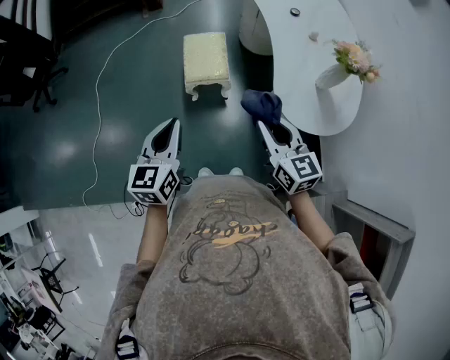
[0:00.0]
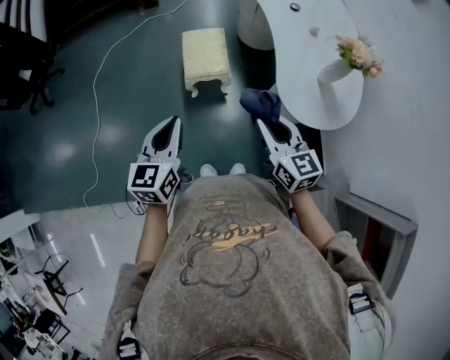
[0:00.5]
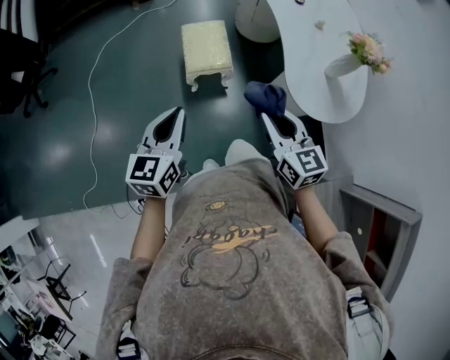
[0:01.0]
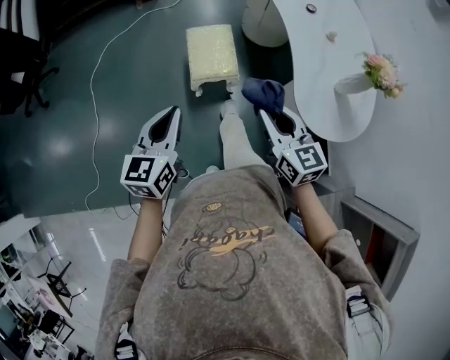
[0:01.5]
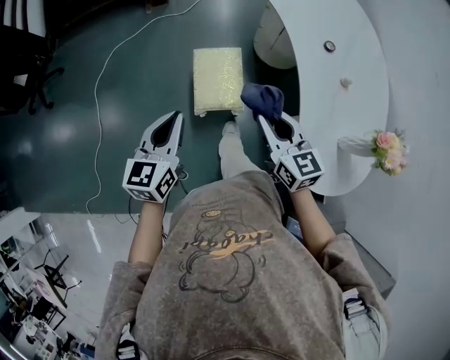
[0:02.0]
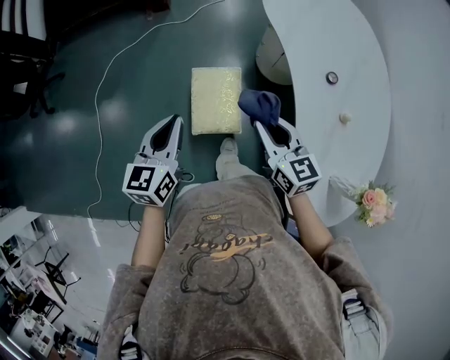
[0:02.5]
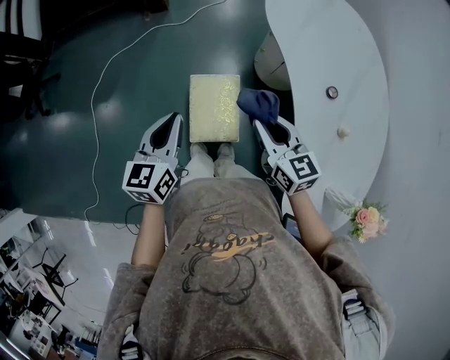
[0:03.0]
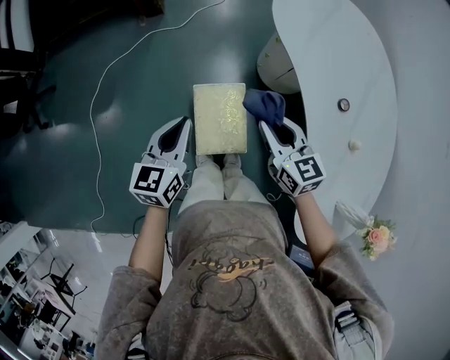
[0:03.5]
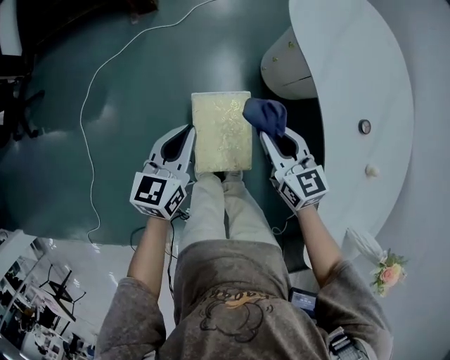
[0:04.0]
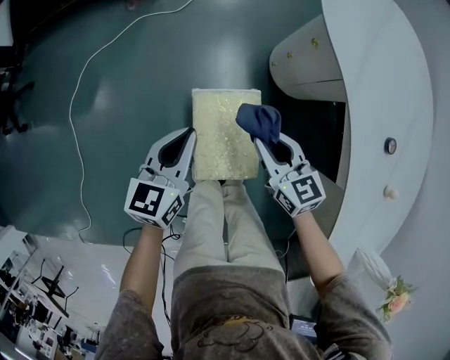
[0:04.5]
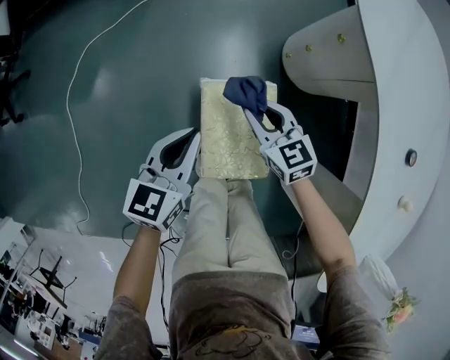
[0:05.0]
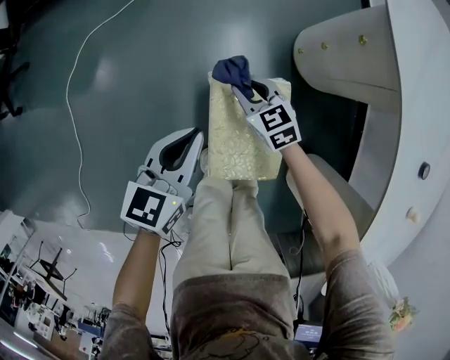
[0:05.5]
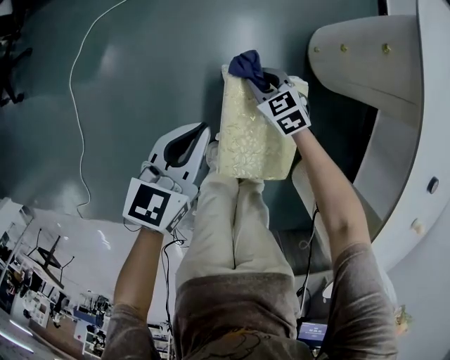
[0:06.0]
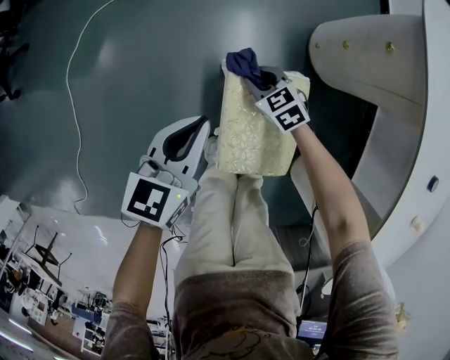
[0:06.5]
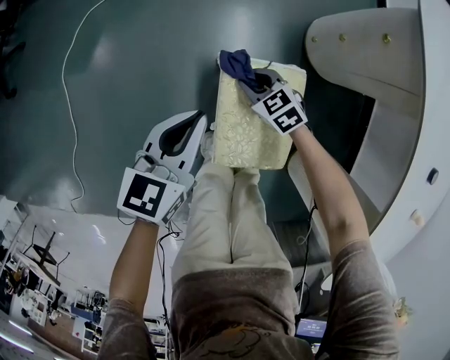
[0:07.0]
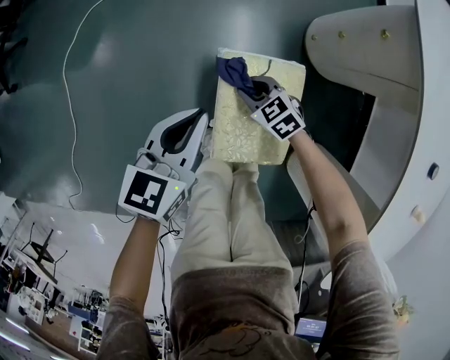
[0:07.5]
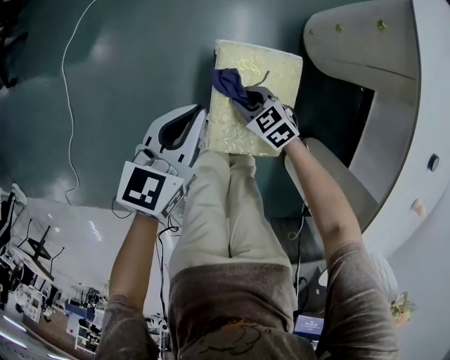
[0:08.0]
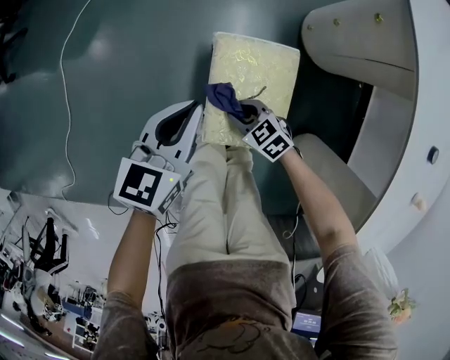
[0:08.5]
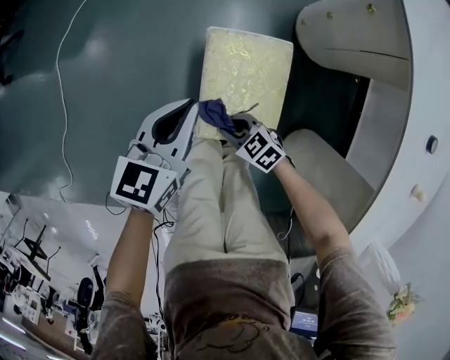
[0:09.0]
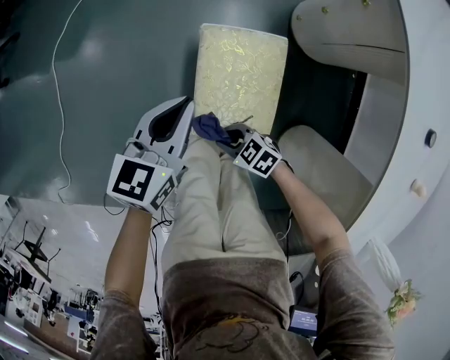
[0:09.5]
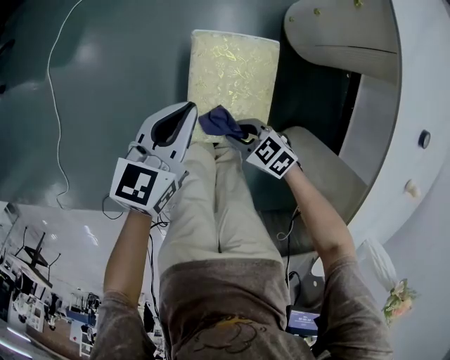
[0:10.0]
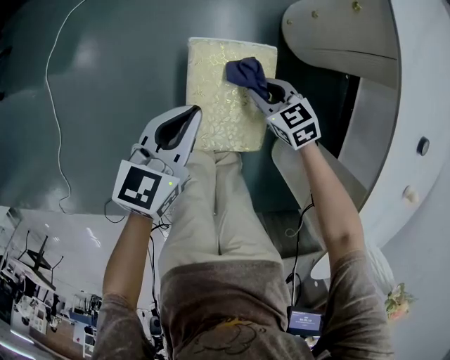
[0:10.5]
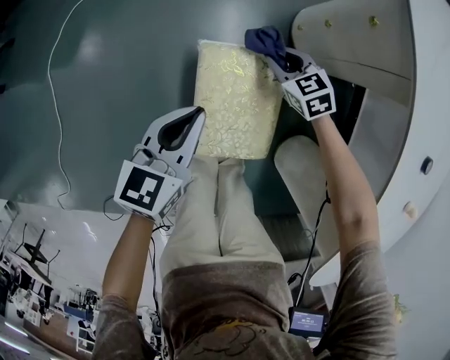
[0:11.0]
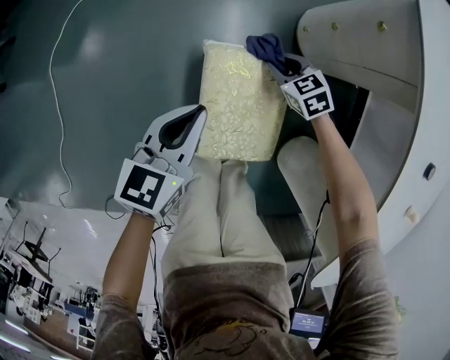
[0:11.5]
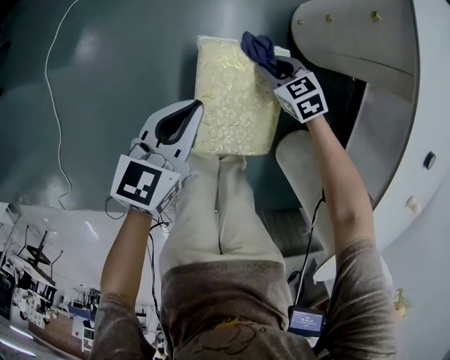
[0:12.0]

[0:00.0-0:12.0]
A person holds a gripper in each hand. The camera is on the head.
0:00.0 to 0:02.0: The two grippers go some 25 cm forward.
0:02.0 to 0:04.0: Both grippers travel together forward and downward, some 35 cm.
0:04.0 to 0:06.0: The left gripper moves downward, some 20 cm, while the right gripper is displaced downward by roughly 35 cm, and turns by roughly 40 degrees.
0:06.0 to 0:08.0: The right gripper travels backward by some 15 cm; the left gripper shifts about 5 cm backward.
0:08.0 to 0:10.0: The right gripper moves roughly 15 cm.
0:10.0 to 0:12.0: The right gripper goes about 25 cm forward and to the right, and rotates about 20 degrees. Meanwhile the left gripper ends up approximately 5 cm from where it was.

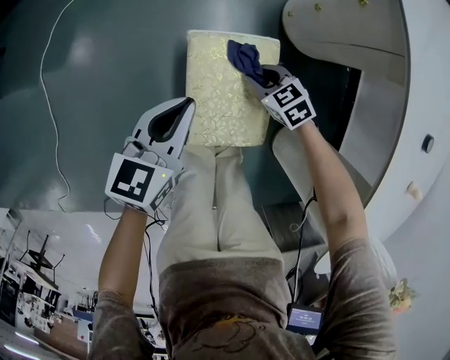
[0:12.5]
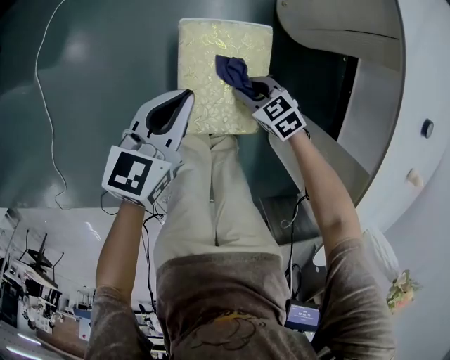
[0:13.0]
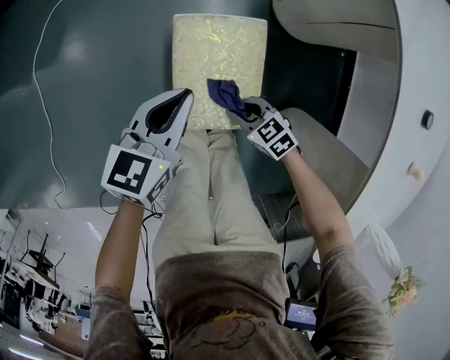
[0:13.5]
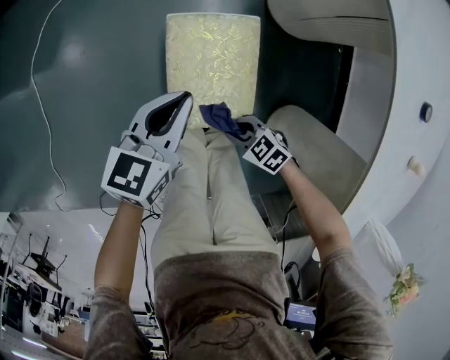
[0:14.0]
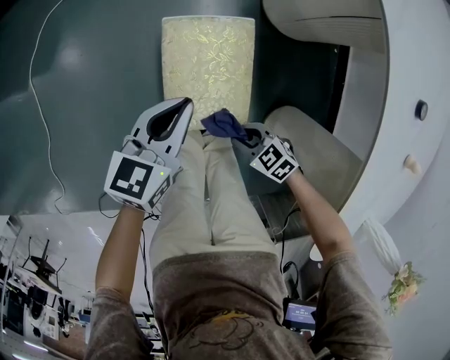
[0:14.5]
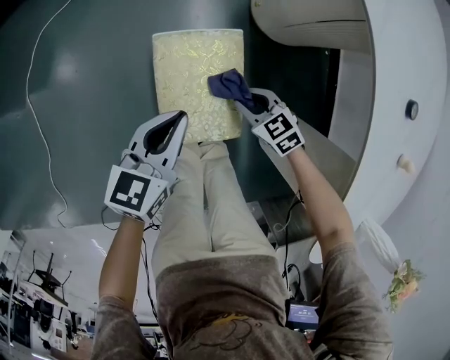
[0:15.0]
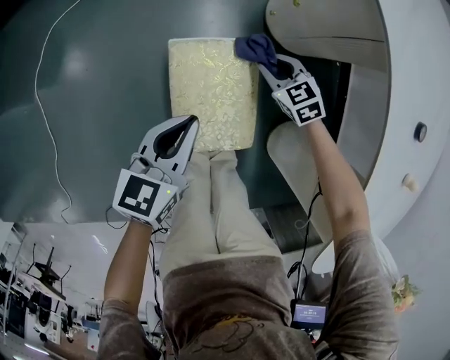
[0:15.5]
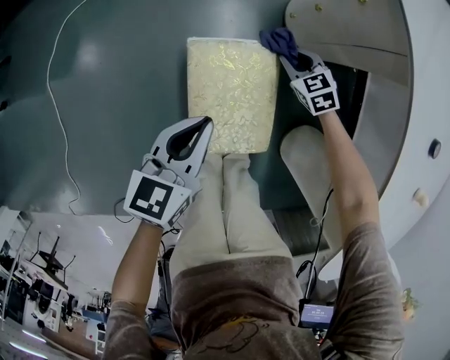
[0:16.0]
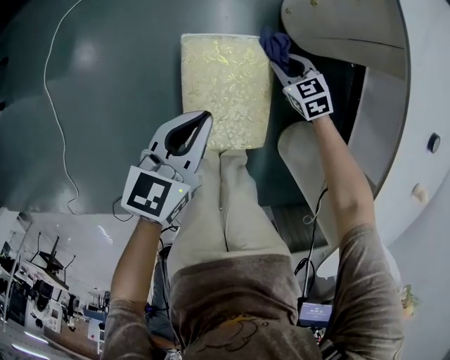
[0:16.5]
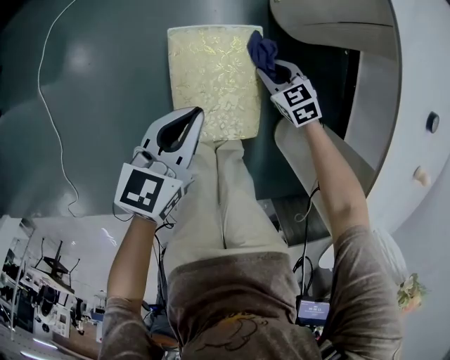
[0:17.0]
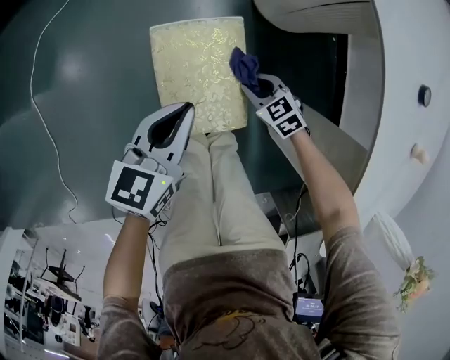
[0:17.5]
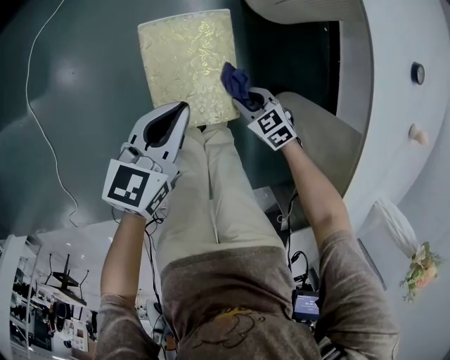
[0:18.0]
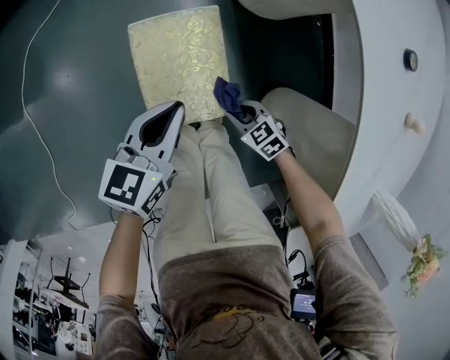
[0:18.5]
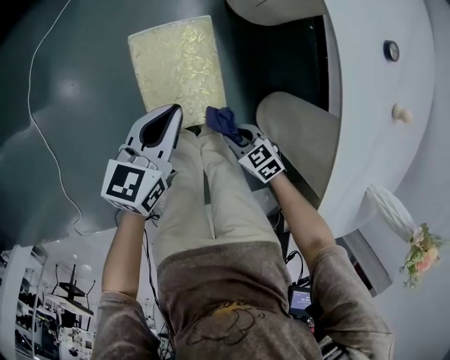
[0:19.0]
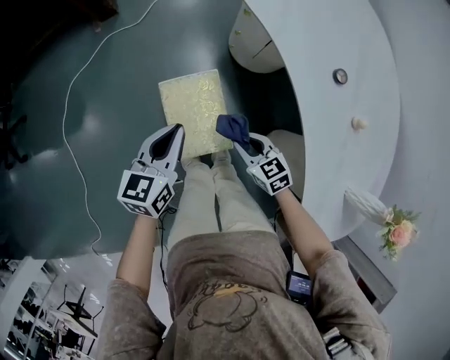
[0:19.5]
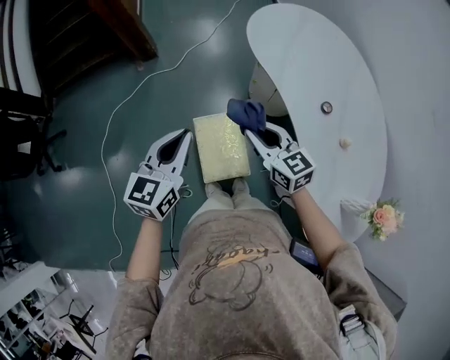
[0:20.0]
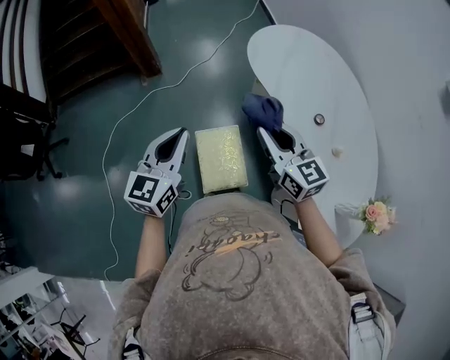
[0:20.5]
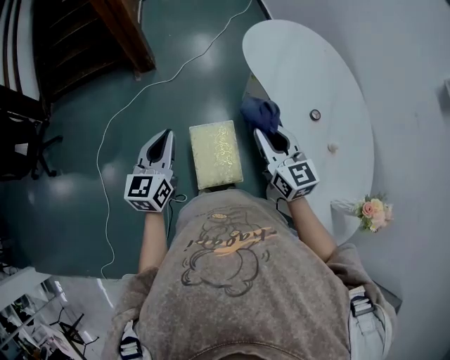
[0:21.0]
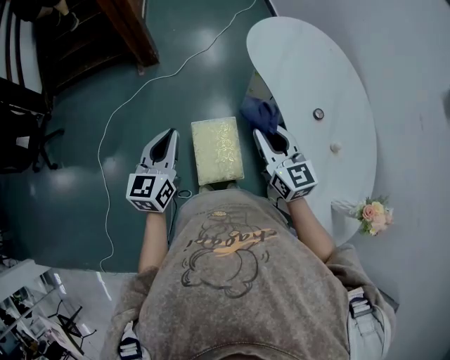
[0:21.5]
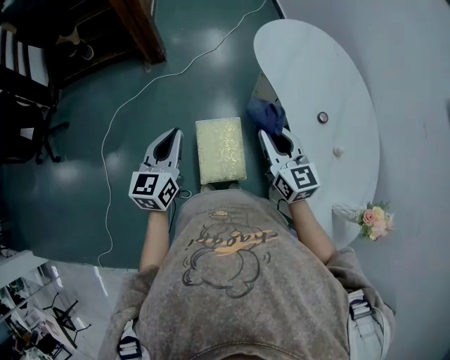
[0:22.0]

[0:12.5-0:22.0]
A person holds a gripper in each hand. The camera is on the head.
0:12.5 to 0:14.5: The left gripper moves some 10 cm; the right gripper shifts by some 25 cm.
0:14.5 to 0:16.5: The right gripper travels forward by some 30 cm, and rotates roughly 30 degrees.
0:16.5 to 0:18.0: The left gripper heads backward, covering approximately 5 cm; the right gripper moves backward, approximately 20 cm.
0:18.0 to 0:20.0: The two grippers go approximately 40 cm upward. The right gripper angles its fingers upward, by some 40 degrees. Meanwhile the left gripper rotates approximately 20 degrees.
0:20.0 to 0:22.0: The right gripper travels upward by about 5 cm, while the left gripper changes place by roughly 5 cm.

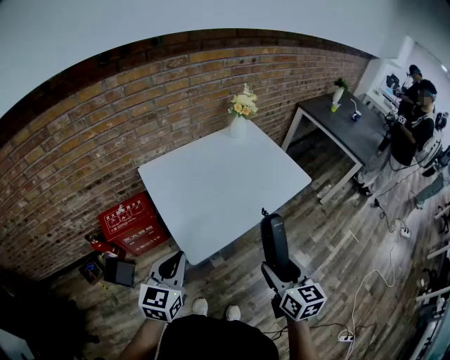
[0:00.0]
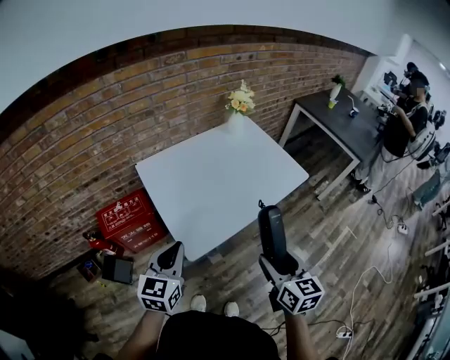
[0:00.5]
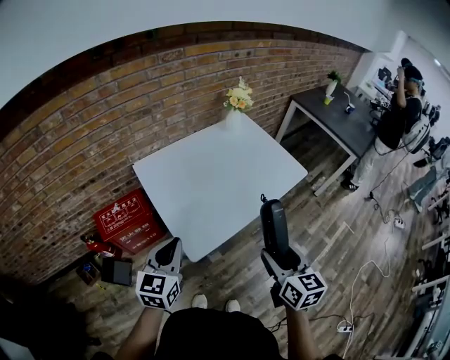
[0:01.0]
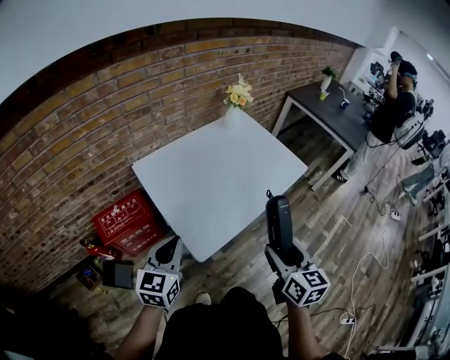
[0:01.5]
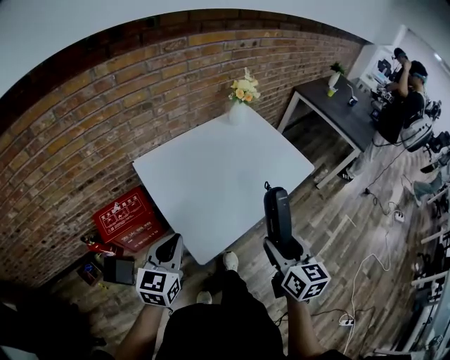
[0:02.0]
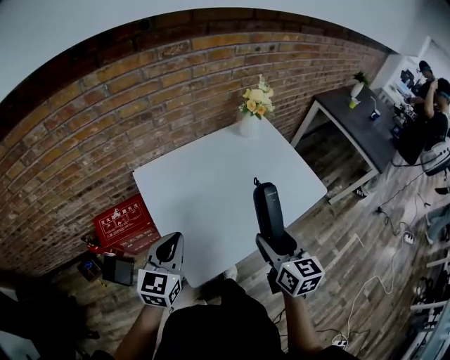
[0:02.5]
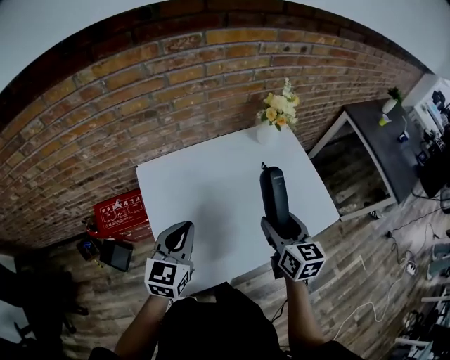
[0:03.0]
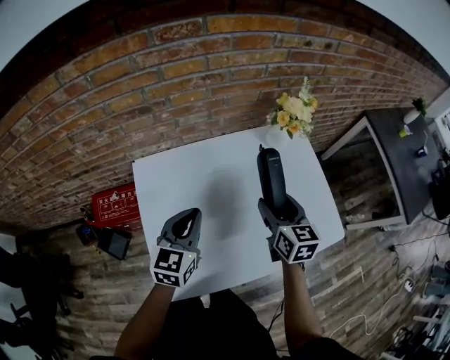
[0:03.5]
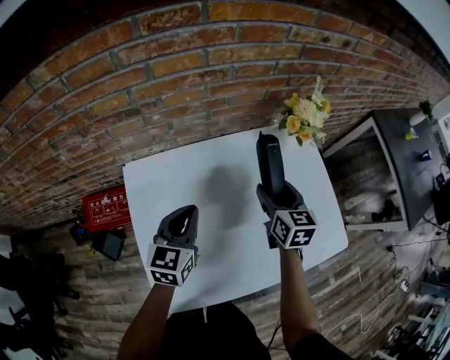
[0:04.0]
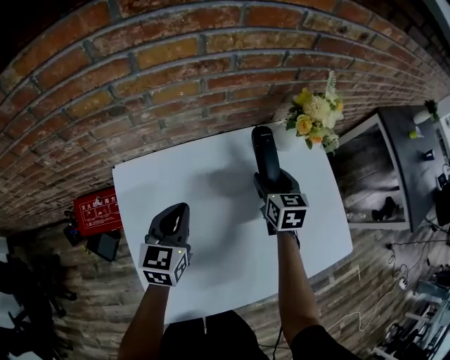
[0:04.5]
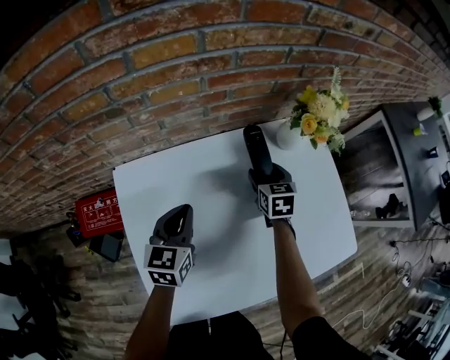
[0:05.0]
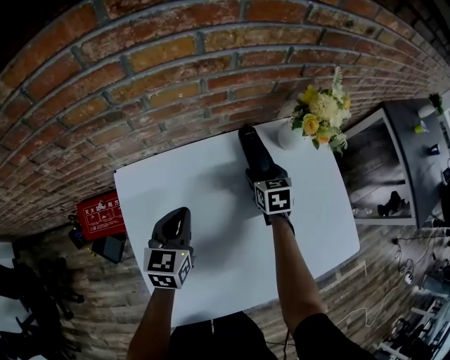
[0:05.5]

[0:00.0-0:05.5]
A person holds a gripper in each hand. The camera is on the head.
0:00.0 to 0:02.0: Both grippers travel together forward, about 5 cm.
0:02.0 to 0:03.5: The right gripper is displaced forward by some 40 cm, and turns by about 20 degrees. The left gripper goes approximately 30 cm forward and to the right.
0:03.5 to 0:05.5: The right gripper moves downward and forward, approximately 25 cm, and changes its angle by some 20 degrees; the left gripper travels downward and forward by approximately 15 cm.
